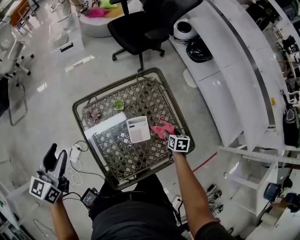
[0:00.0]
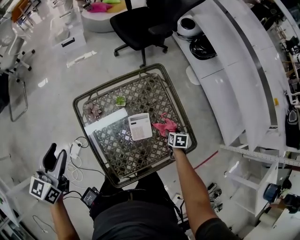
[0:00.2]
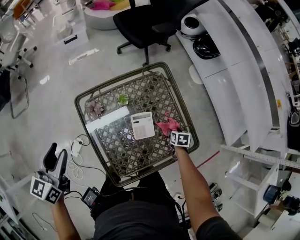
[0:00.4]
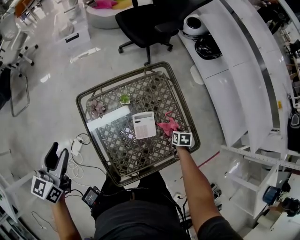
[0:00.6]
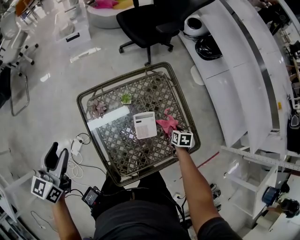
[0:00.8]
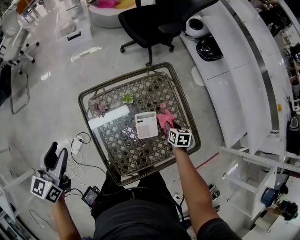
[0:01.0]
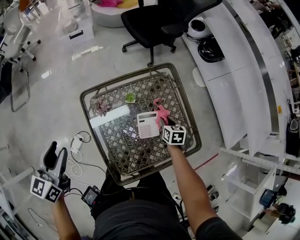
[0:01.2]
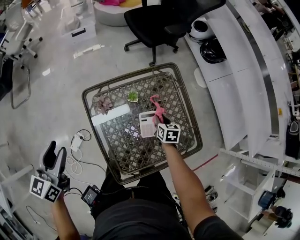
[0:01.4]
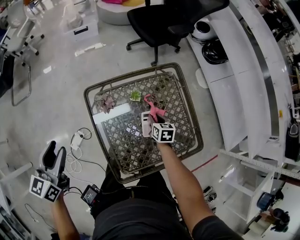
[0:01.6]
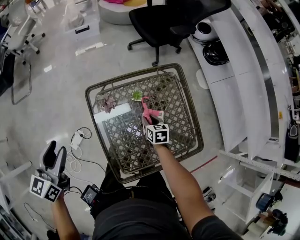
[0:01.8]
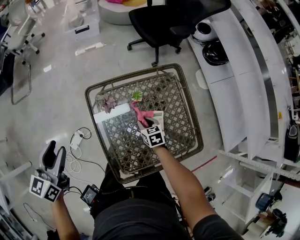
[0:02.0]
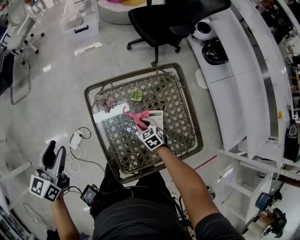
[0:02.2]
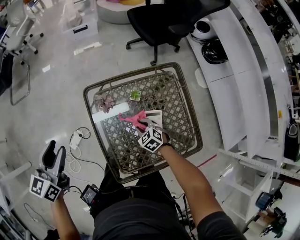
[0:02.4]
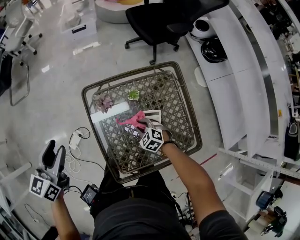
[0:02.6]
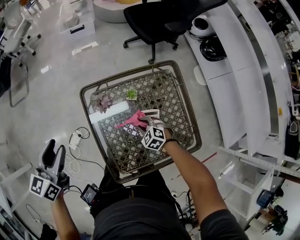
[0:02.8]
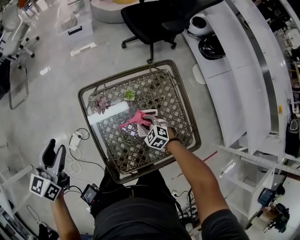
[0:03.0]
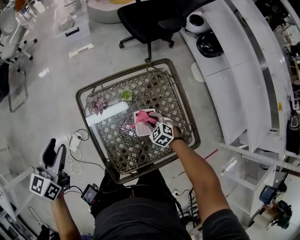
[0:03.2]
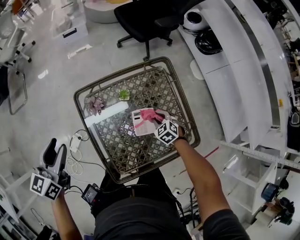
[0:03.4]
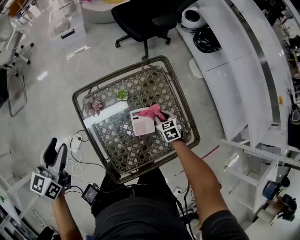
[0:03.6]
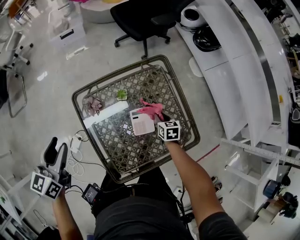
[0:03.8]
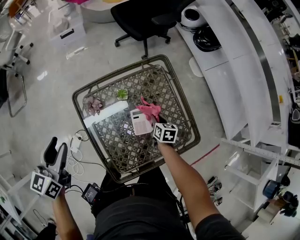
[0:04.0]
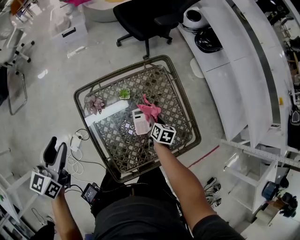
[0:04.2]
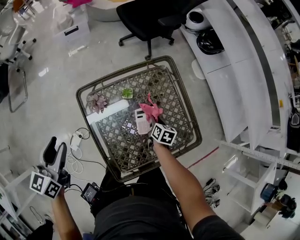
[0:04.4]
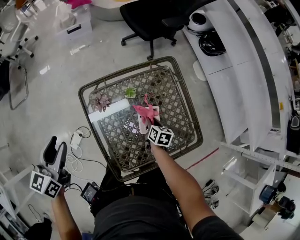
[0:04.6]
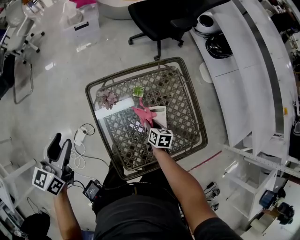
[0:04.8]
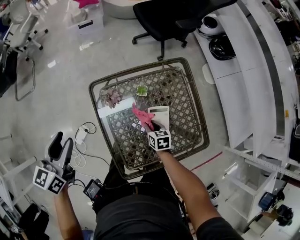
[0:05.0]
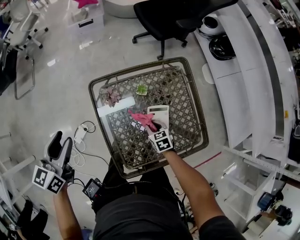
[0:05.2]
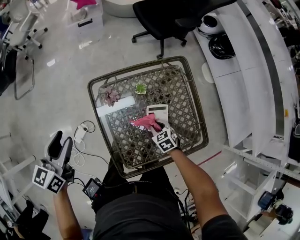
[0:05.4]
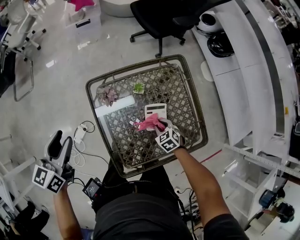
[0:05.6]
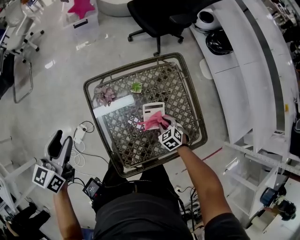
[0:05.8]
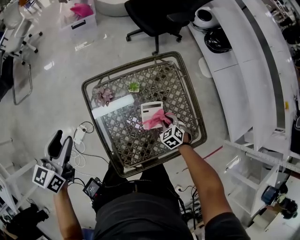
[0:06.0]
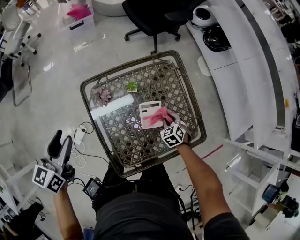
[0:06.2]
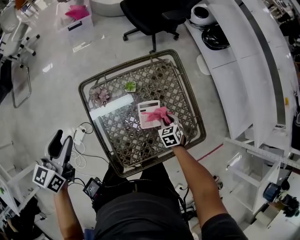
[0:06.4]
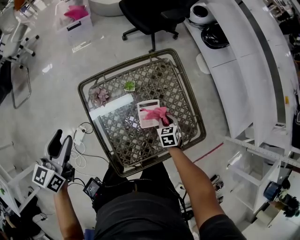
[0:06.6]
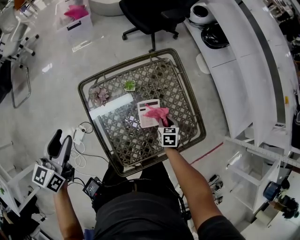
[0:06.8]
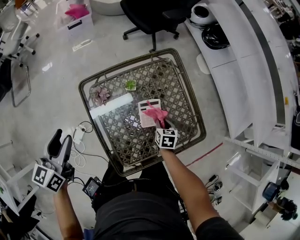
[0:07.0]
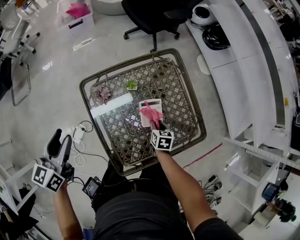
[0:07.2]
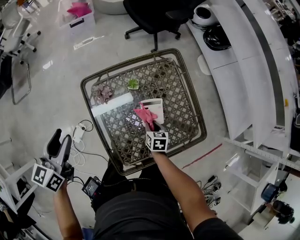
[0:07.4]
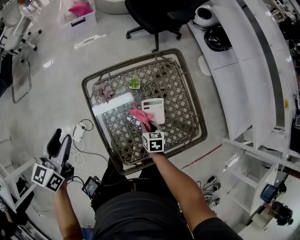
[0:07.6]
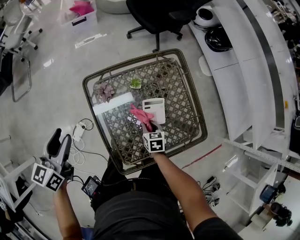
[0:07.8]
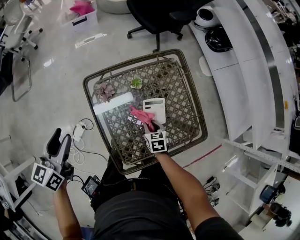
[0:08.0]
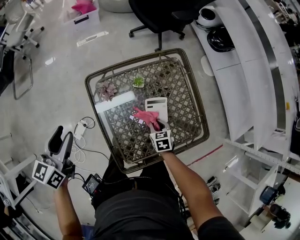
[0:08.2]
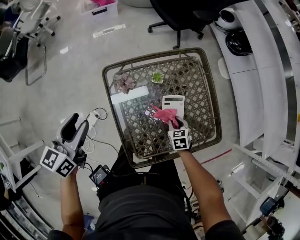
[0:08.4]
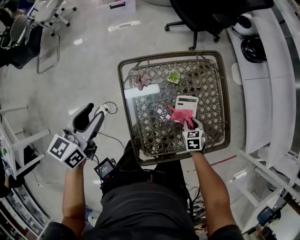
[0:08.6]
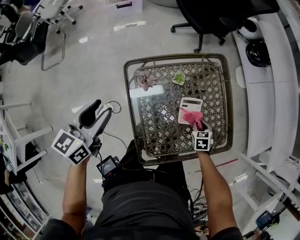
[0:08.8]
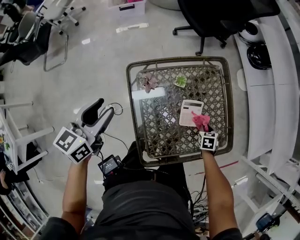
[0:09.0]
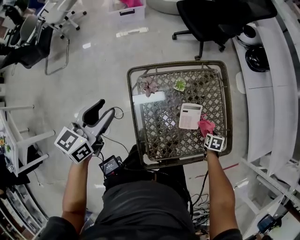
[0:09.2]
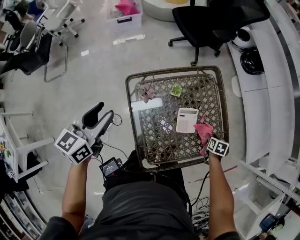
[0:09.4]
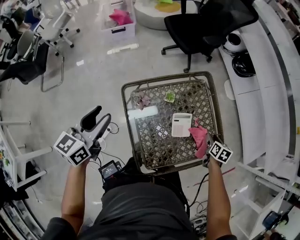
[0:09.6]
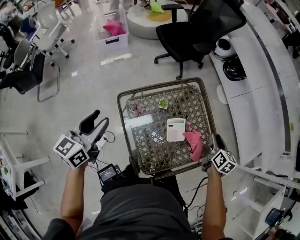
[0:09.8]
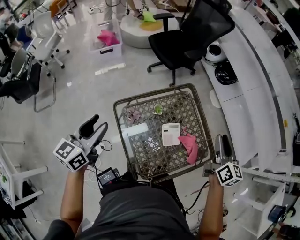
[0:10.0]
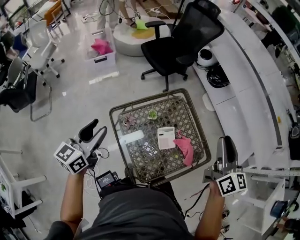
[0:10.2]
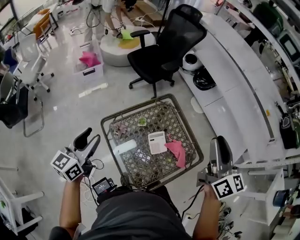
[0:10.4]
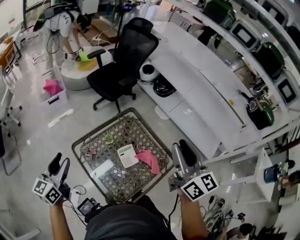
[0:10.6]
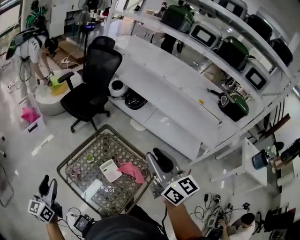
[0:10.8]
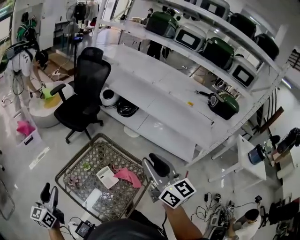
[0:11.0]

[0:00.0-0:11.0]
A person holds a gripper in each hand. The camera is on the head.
0:00.0 to 0:01.6: The left gripper moves to the left, approximately 5 cm, while the right gripper heads to the left, covering roughly 20 cm, and closes up.
0:01.6 to 0:03.2: The right gripper reaches about 10 cm to the left, then returns, and rolls counterclockwise, seen from behind, by some 60 degrees.
0:03.2 to 0:04.8: The right gripper travels to the right and back again, approximately 10 cm each way, and rotates around the line of its fingers by some 70 degrees, clockwise from behind.
0:04.8 to 0:06.2: The right gripper shifts roughly 10 cm to the right, and rolls counterclockwise, seen from behind, by about 50 degrees.
0:06.2 to 0:07.8: The right gripper travels to the left and backward by about 15 cm, and turns by approximately 40 degrees.
0:07.8 to 0:09.4: The right gripper shifts by roughly 20 cm, and swivels roughly 20 degrees. The left gripper ends up approximately 5 cm from where it was.
0:09.4 to 0:11.0: The right gripper shifts about 60 cm upward, and angles its fingers upward, by about 70 degrees, while the left gripper goes approximately 10 cm upward, and changes its angle by approximately 20 degrees.

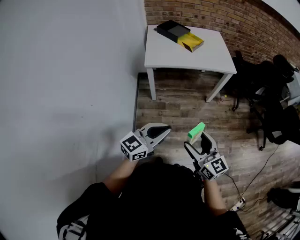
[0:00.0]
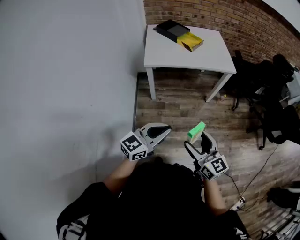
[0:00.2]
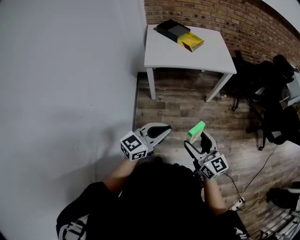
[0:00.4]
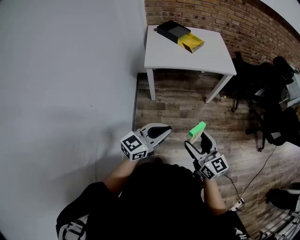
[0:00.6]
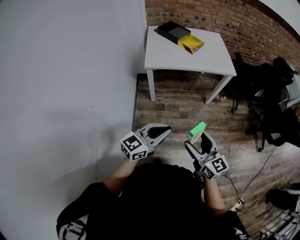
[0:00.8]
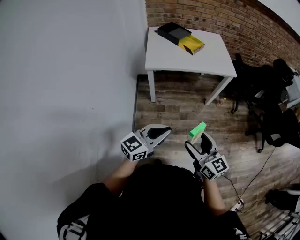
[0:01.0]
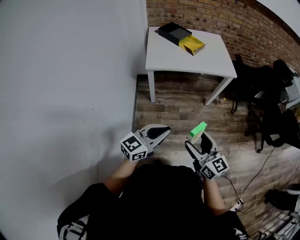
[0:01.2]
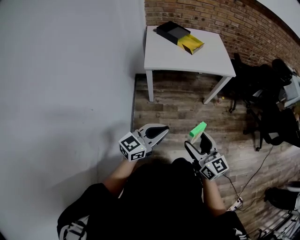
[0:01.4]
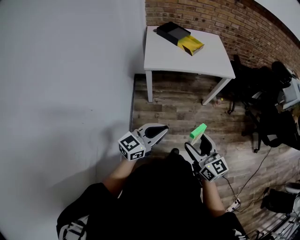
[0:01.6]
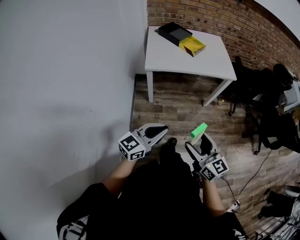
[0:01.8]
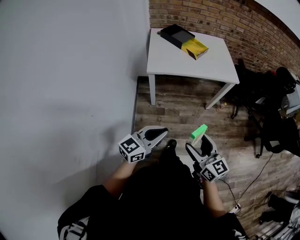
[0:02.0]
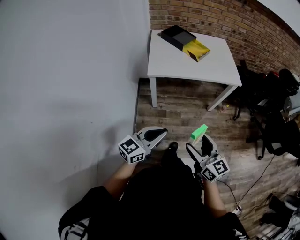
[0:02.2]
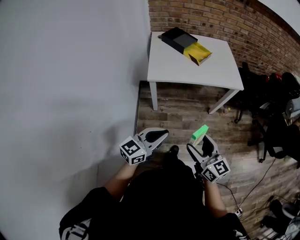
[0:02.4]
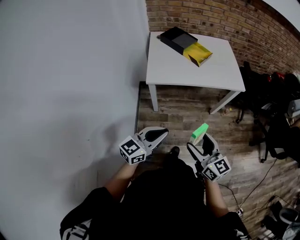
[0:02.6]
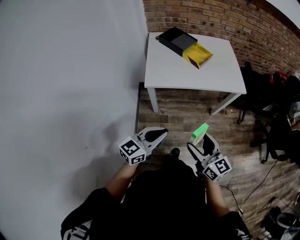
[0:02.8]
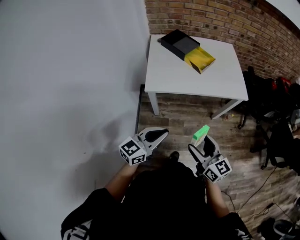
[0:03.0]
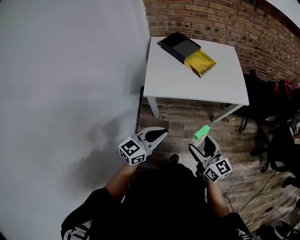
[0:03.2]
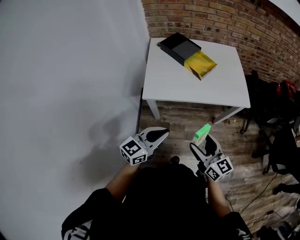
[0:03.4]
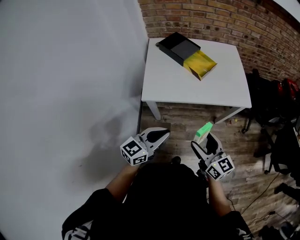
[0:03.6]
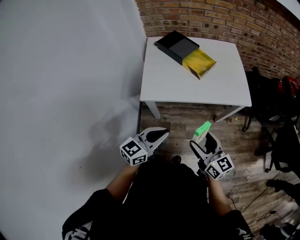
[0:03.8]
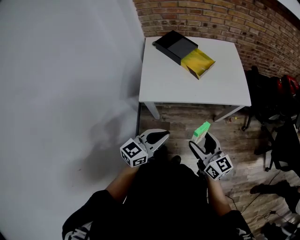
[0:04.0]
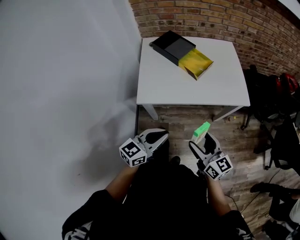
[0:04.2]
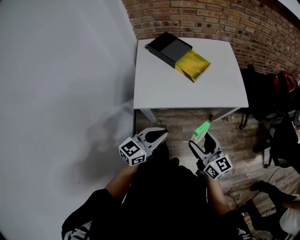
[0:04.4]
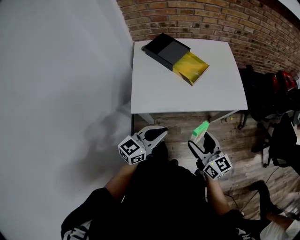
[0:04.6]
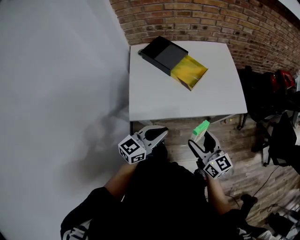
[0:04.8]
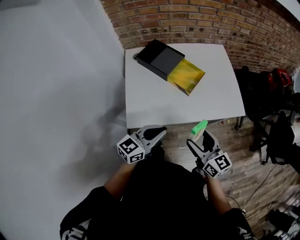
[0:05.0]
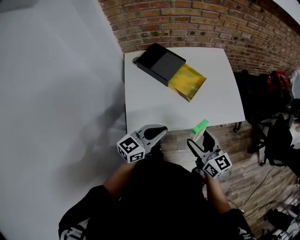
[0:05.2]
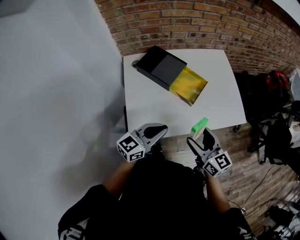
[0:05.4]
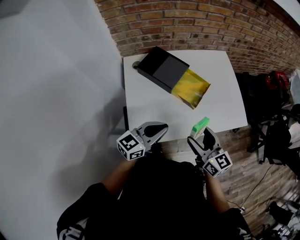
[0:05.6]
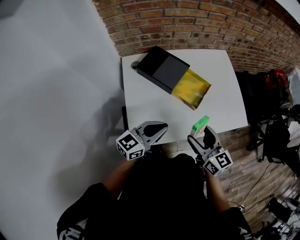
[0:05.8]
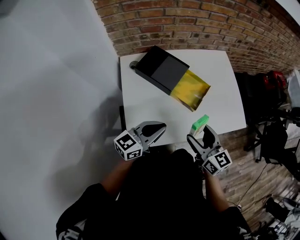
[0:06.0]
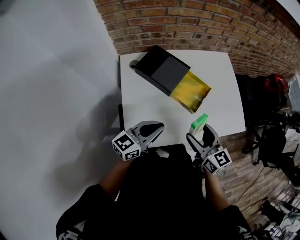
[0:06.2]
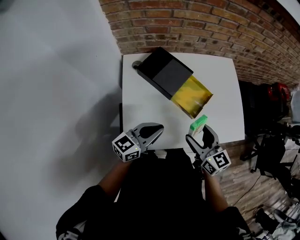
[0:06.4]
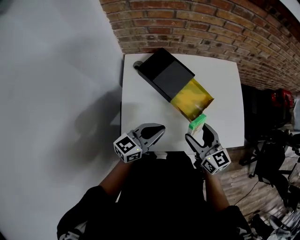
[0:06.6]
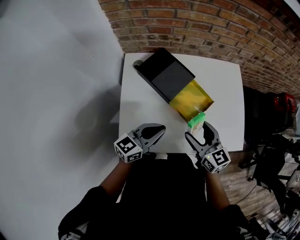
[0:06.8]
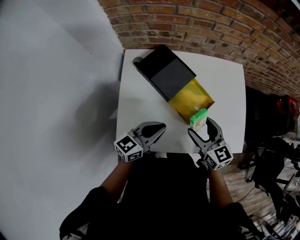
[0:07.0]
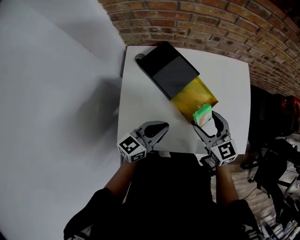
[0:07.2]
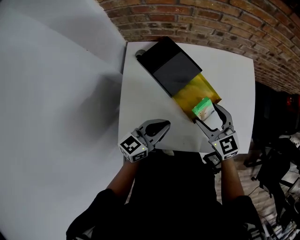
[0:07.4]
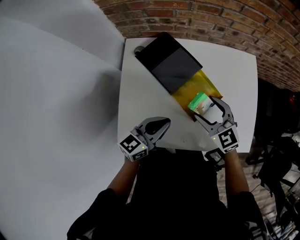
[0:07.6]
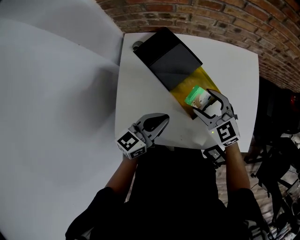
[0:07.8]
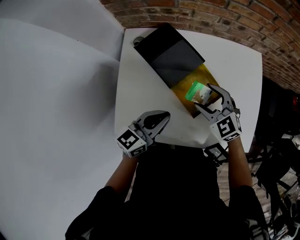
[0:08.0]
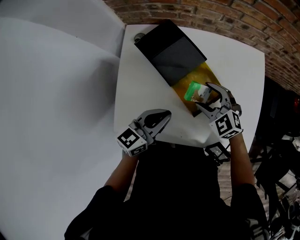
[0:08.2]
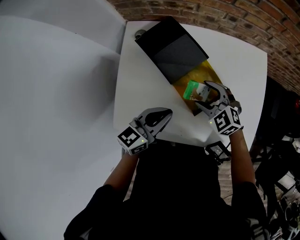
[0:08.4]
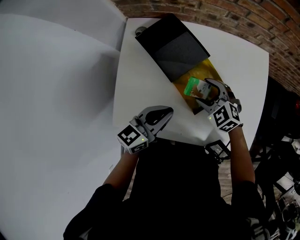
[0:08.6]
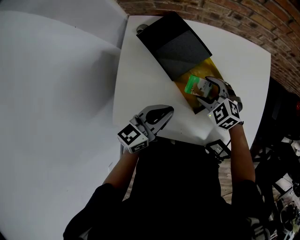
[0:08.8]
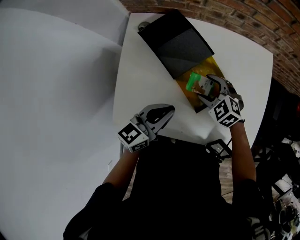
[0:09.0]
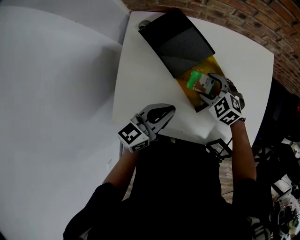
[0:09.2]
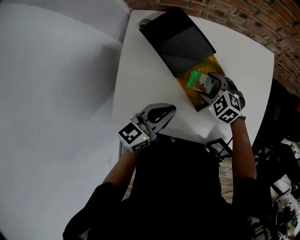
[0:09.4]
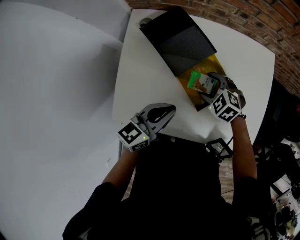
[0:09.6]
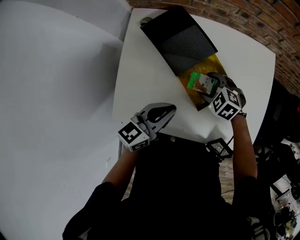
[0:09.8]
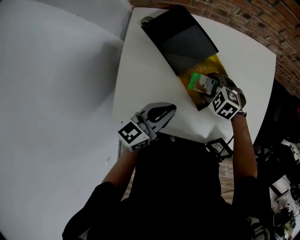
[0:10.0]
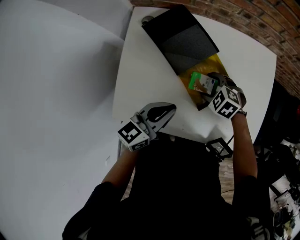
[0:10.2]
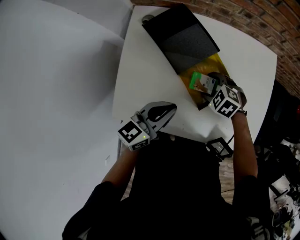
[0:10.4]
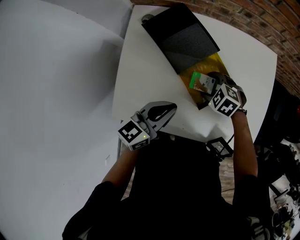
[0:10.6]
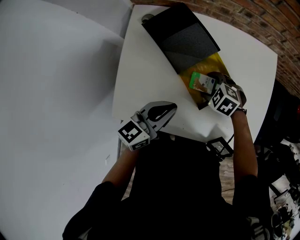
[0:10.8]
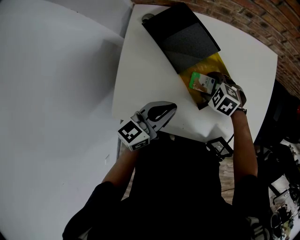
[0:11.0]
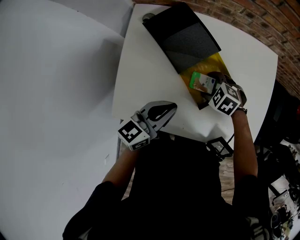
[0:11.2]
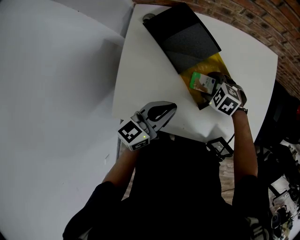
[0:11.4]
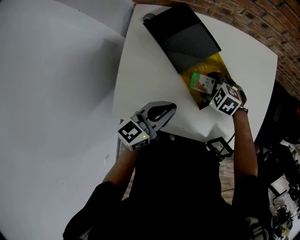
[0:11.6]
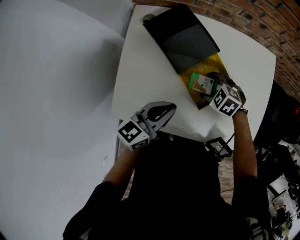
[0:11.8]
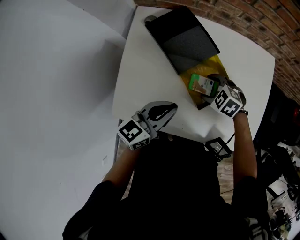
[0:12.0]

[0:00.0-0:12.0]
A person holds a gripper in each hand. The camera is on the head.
0:00.0 to 0:01.6: The grippers move only a little.
0:01.6 to 0:03.0: The two grippers go approximately 20 cm forward.
0:03.0 to 0:04.4: The two grippers go some 15 cm forward.
0:04.4 to 0:06.0: The two grippers go some 25 cm forward and to the left.
0:06.0 to 0:07.6: The left gripper moves forward and to the right, about 10 cm, and rotates about 20 degrees; the right gripper is displaced forward by roughly 20 cm, and changes its angle by about 40 degrees.
0:07.6 to 0:09.0: The right gripper is displaced downward by approximately 10 cm, and changes its angle by roughly 30 degrees.
0:09.0 to 0:10.4: There are only small adjustments of the grippers.
0:10.4 to 0:12.0: Both grippers stay about where they are.

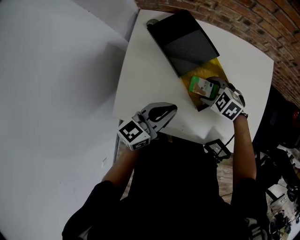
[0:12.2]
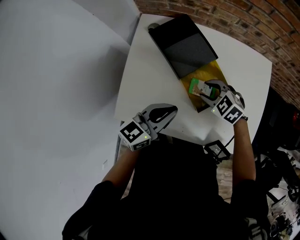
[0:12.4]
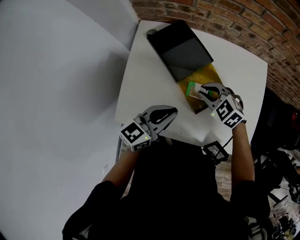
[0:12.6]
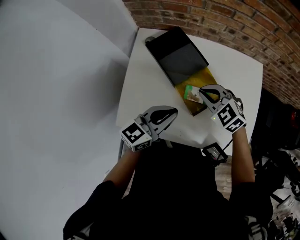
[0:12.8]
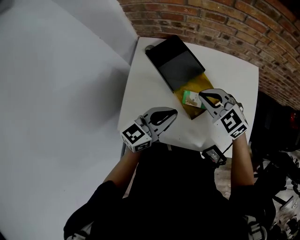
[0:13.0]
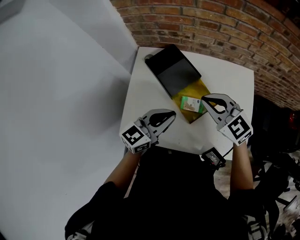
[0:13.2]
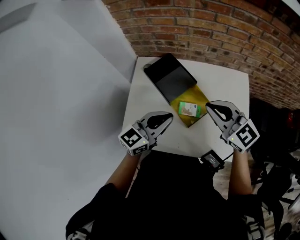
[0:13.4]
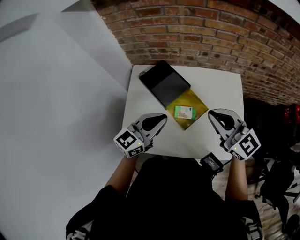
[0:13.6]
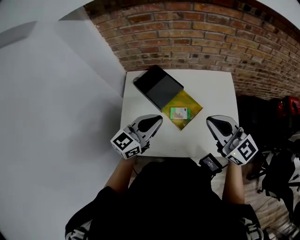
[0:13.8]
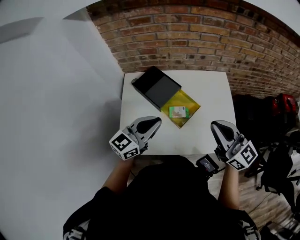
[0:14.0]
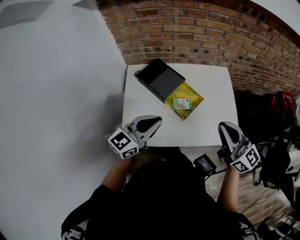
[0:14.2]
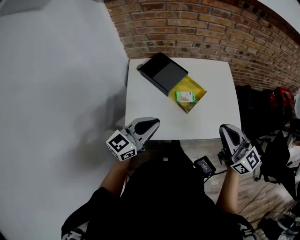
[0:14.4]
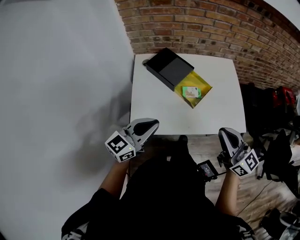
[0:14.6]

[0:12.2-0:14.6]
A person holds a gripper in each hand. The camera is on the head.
0:12.2 to 0:13.4: The left gripper heads upward, covering roughly 15 cm, while the right gripper travels upward by roughly 30 cm, tips its fingers upward by approximately 50 degrees, and closes up.
0:13.4 to 0:14.6: The right gripper heads backward, covering approximately 25 cm, and rotates about 30 degrees, while the left gripper is displaced backward and to the left by about 20 cm.
